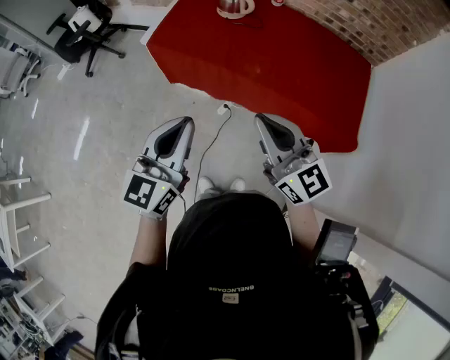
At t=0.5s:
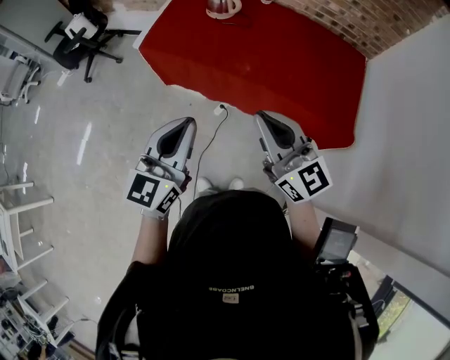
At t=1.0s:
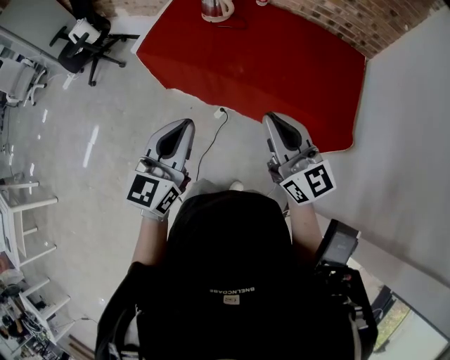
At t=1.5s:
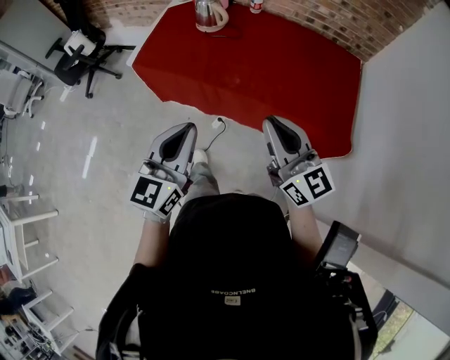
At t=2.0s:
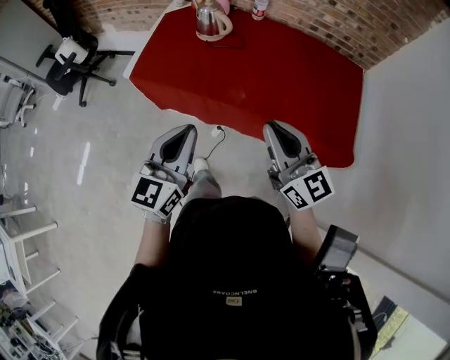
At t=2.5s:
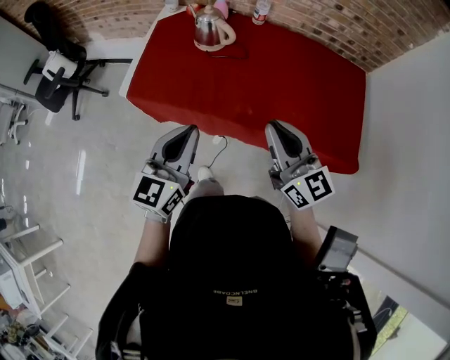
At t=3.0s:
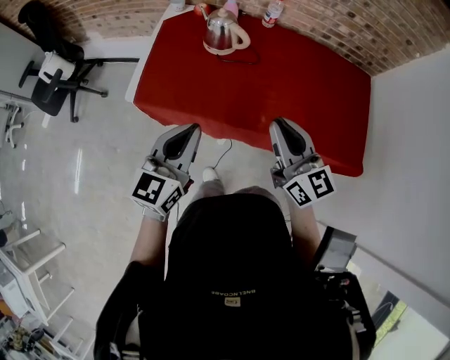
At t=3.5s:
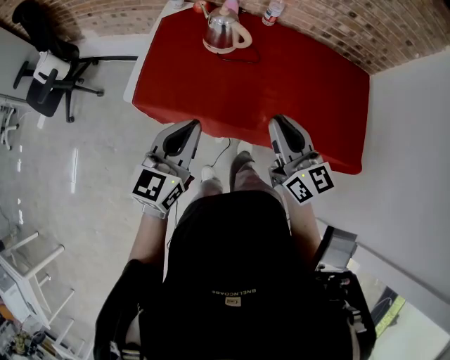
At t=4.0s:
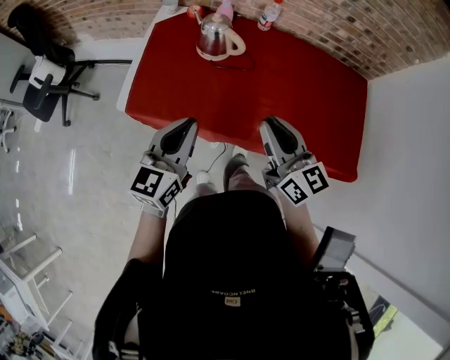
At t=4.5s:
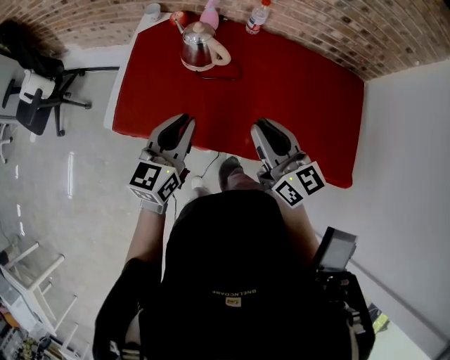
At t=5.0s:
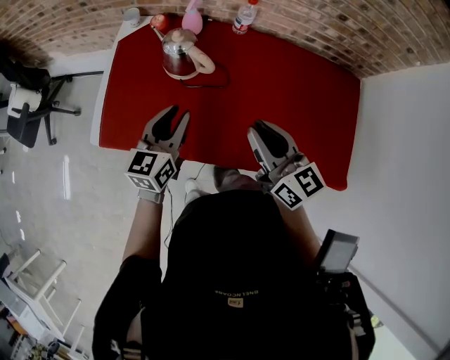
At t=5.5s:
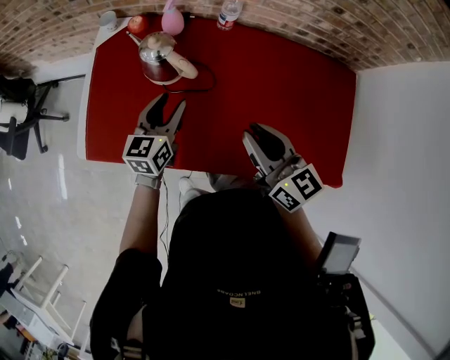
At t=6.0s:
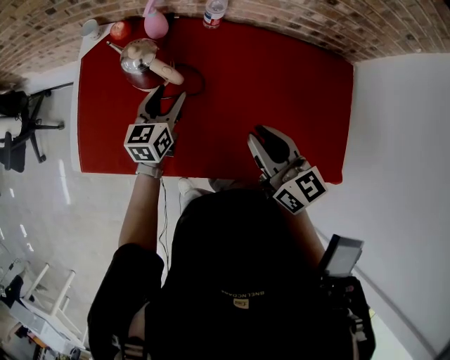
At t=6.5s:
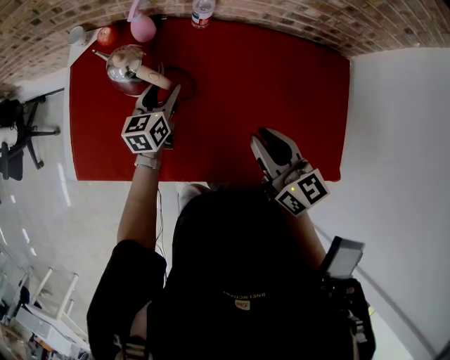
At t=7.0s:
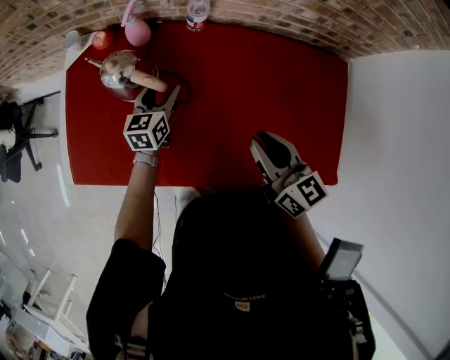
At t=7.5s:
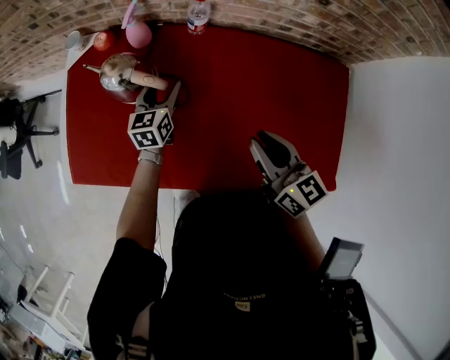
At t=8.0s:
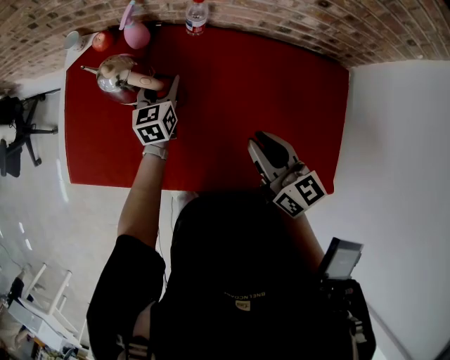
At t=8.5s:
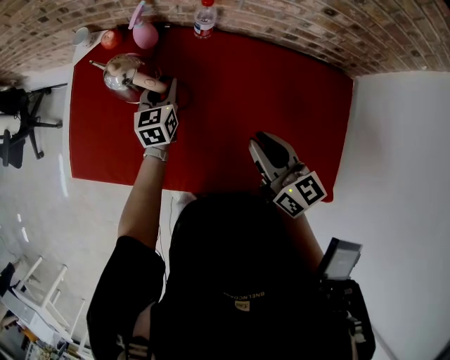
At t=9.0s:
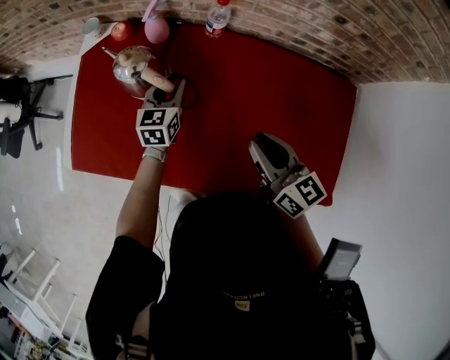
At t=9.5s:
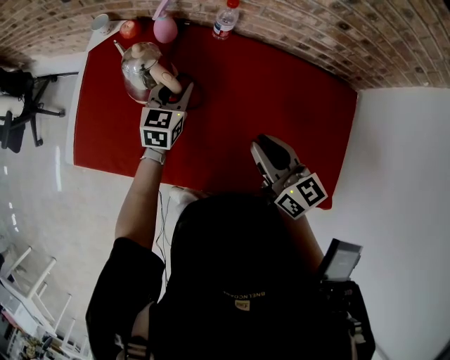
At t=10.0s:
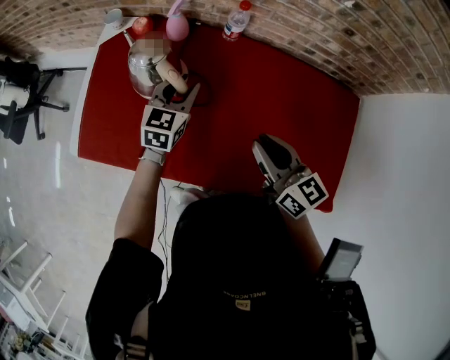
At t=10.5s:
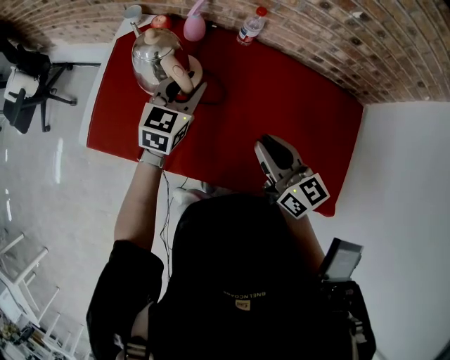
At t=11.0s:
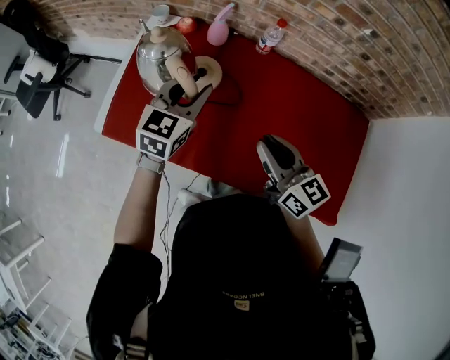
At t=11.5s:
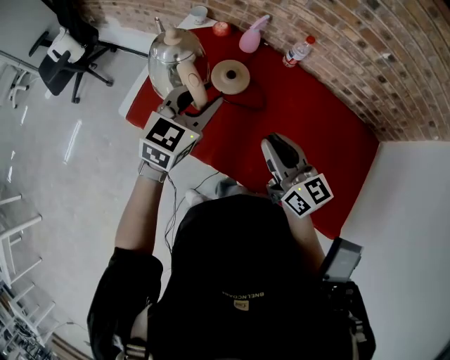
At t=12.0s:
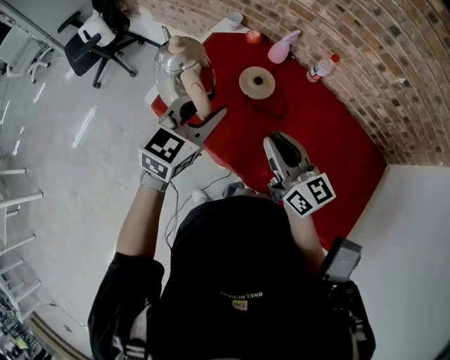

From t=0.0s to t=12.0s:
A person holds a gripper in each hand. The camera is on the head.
From t=0.0s to t=2.0s: The right gripper goes approximately 10 cm to the right and forward, while the left gripper heads forward and to the right, covering approximately 10 cm.
From t=2.0s to t=4.0s: Both grippers move forward and to the left, approximately 20 cm.
From t=4.0s to t=6.0s: The right gripper shifts roughly 20 cm forward, to the right and downward. Meanwhile the left gripper moves forward, downward and to the right, approximately 35 cm, and opens its fingers.
From t=6.0s to t=8.0s: The right gripper is displaced to the right by some 5 cm; the left gripper moves forward, roughly 10 cm.
From t=8.0s to t=10.0s: The right gripper goes roughly 5 cm to the left; the left gripper goes some 10 cm upward and backward, and closes up.
From t=10.0s to t=12.0s: The left gripper travels to the left, upward and backward by some 30 cm. Meanwhile the right gripper goes about 20 cm to the left, and changes its angle by about 20 degrees.

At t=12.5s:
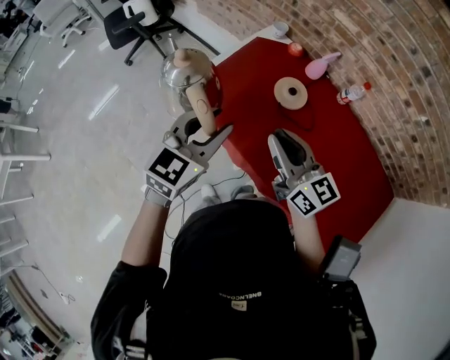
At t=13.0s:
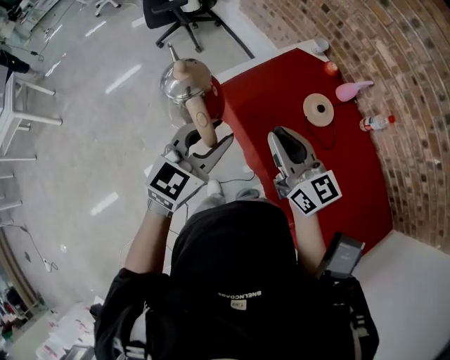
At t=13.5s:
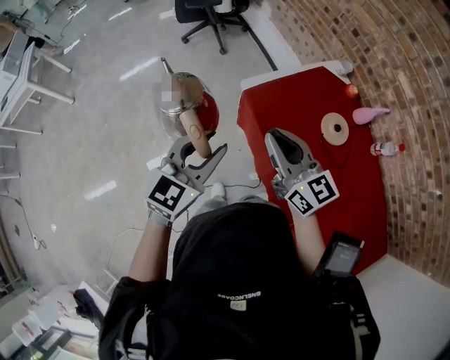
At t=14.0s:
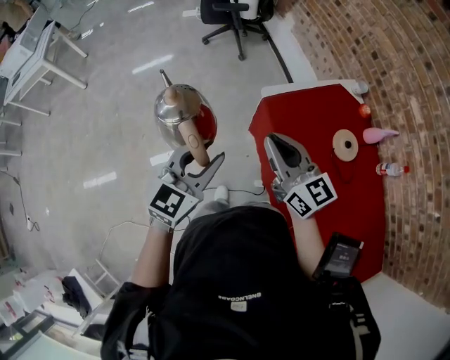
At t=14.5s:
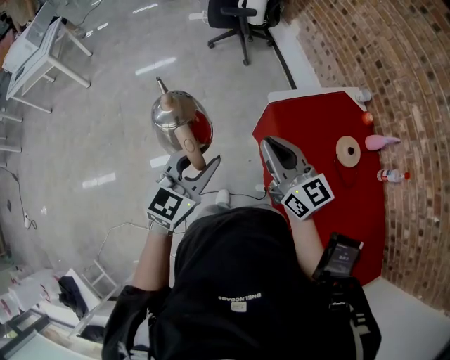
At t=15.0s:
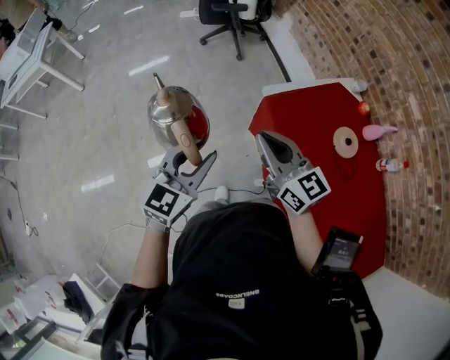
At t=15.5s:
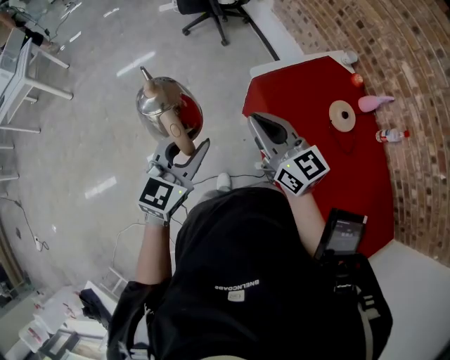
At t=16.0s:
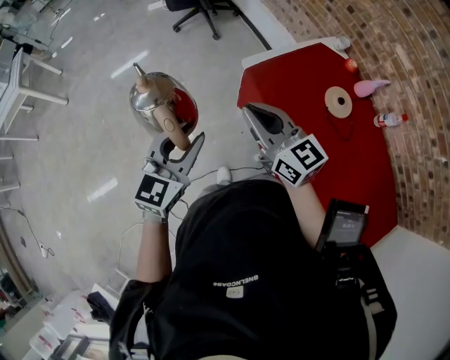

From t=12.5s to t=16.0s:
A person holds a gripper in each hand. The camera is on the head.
From t=12.5s to t=14.5s: The right gripper ends up approximately 25 cm from where it was, and changes its angle by roughly 30 degrees. Meanwhile the left gripper moves roughly 30 cm, and swivels roughly 30 degrees.
From t=14.5s to t=16.0s: There are only small adjustments of the grippers.

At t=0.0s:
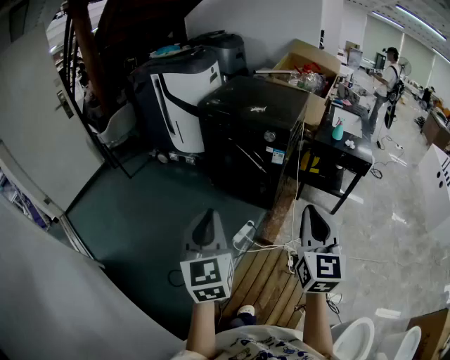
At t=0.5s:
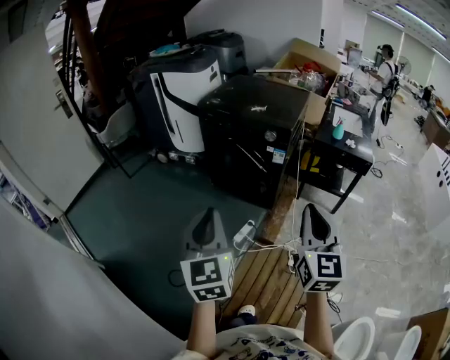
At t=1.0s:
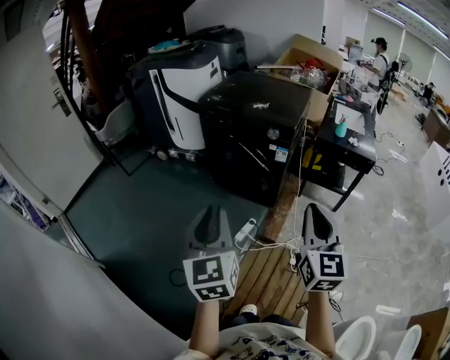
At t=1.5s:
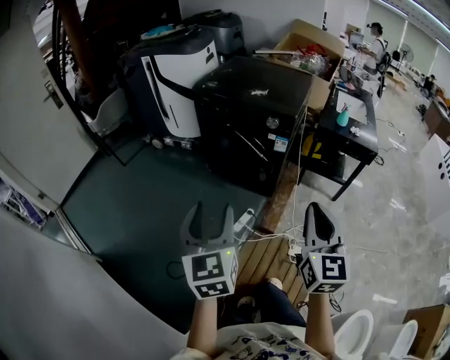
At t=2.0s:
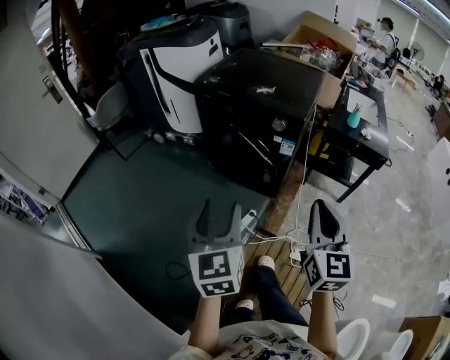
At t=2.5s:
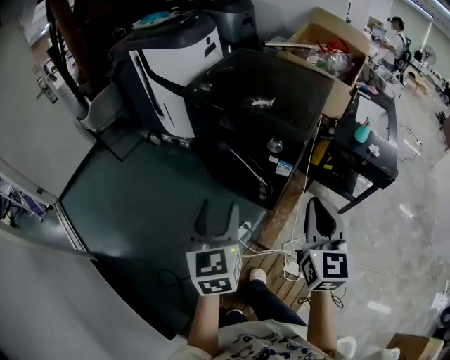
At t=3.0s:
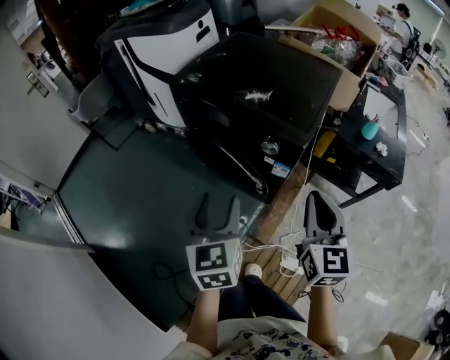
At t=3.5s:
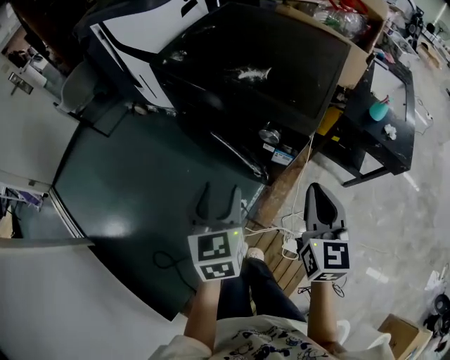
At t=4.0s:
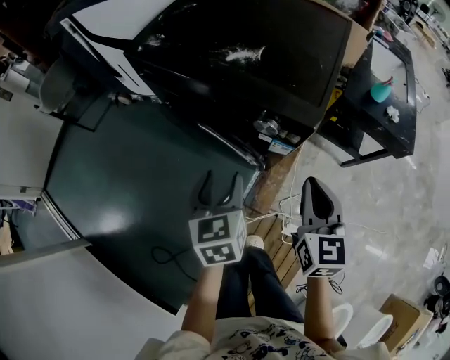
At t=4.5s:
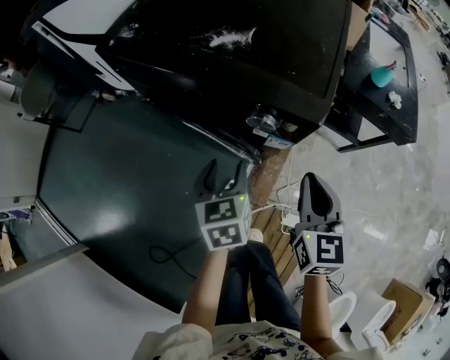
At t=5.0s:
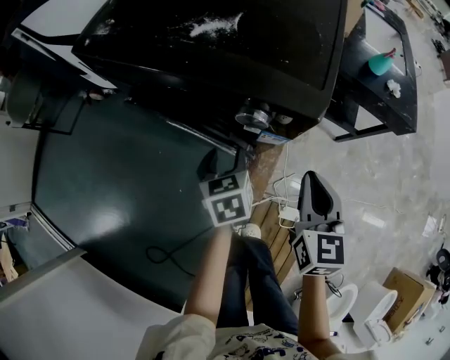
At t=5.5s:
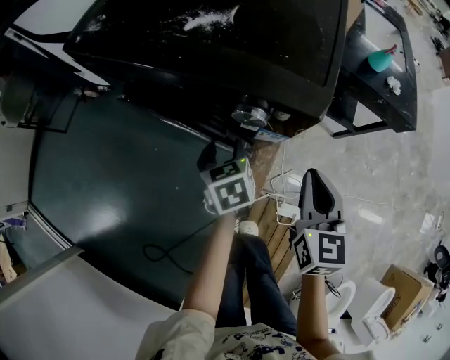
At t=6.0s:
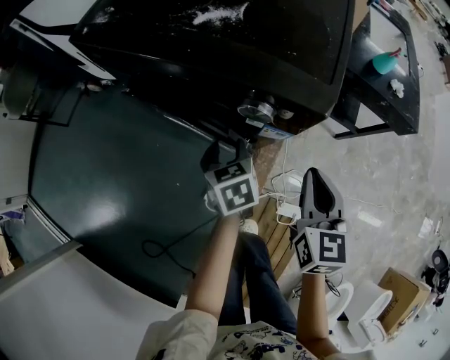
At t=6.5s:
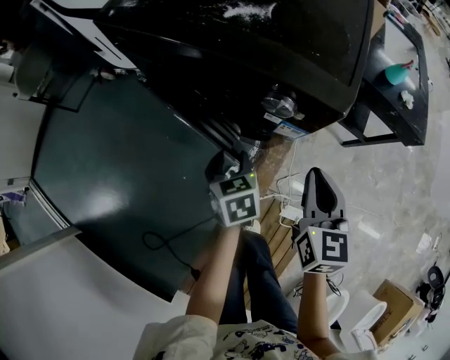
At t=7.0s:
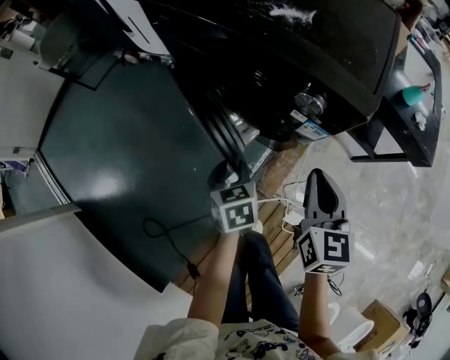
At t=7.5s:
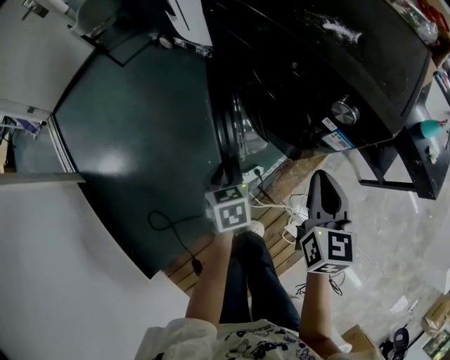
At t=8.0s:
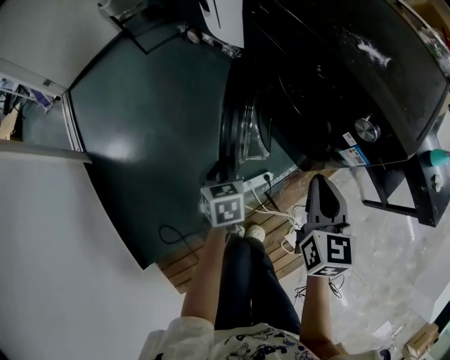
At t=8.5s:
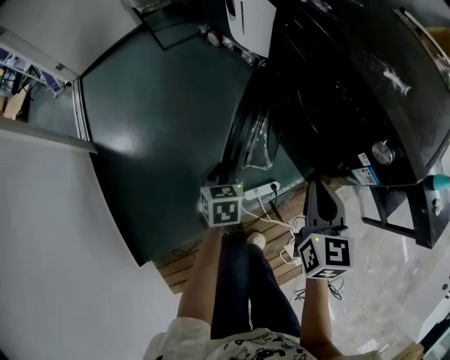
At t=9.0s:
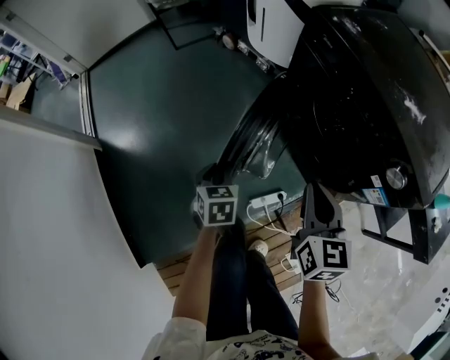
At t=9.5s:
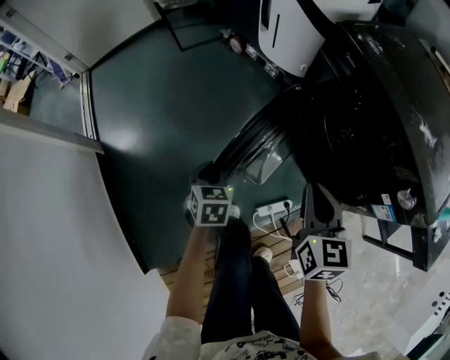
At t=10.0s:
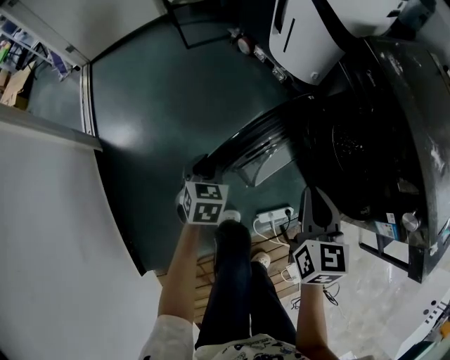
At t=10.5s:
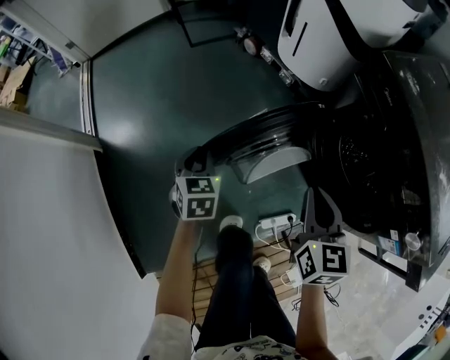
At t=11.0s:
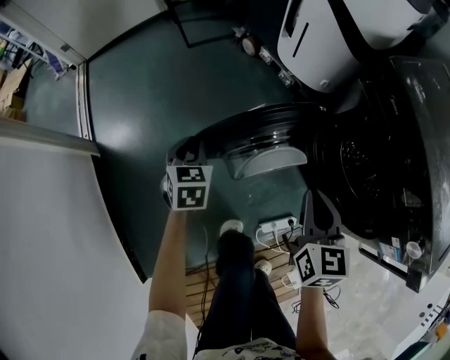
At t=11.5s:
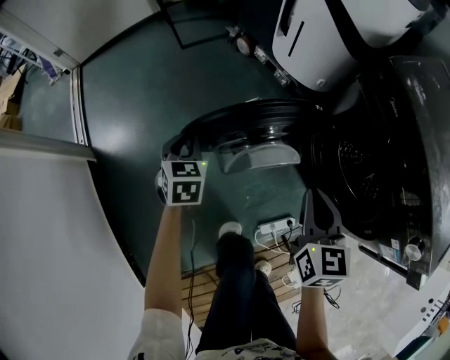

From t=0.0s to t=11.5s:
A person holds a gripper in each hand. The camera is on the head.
From t=0.0s to t=2.0s: Both grippers move forward and downward, approximately 15 cm. The left gripper opens.
From t=2.0s to t=4.0s: Both grippers travel together forward and downward, roughly 35 cm. The left gripper swivels some 20 degrees.
From t=4.0s to t=6.0s: The left gripper goes some 20 cm downward and forward, while the right gripper heads downward, covering about 10 cm.
From t=6.0s to t=7.5s: The right gripper shifts roughly 15 cm to the left, and rotates some 20 degrees; the left gripper moves to the left and backward, about 20 cm, and closes up.
From t=7.5s to t=9.5s: The right gripper moves to the left and forward, some 25 cm; the left gripper shifts some 25 cm to the left.
From t=9.5s to t=11.5s: The right gripper shifts roughly 15 cm forward and to the left, while the left gripper goes approximately 20 cm forward and to the left.
